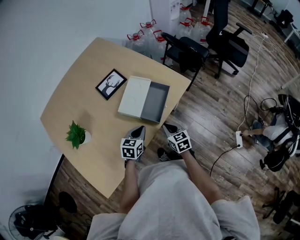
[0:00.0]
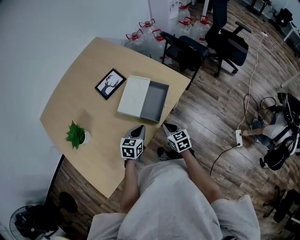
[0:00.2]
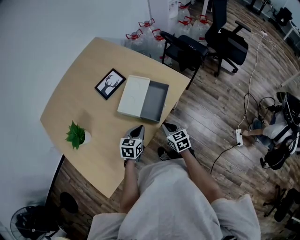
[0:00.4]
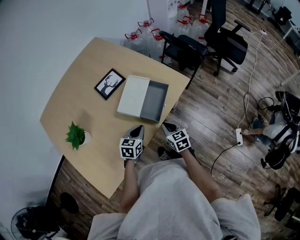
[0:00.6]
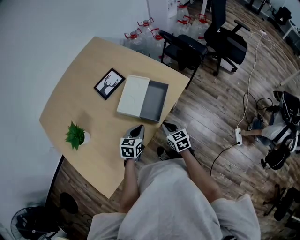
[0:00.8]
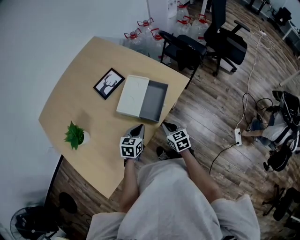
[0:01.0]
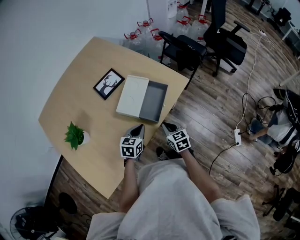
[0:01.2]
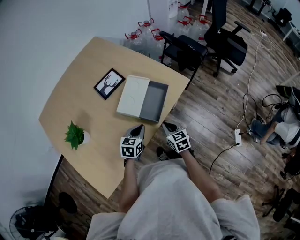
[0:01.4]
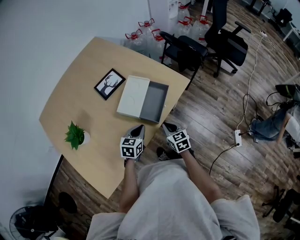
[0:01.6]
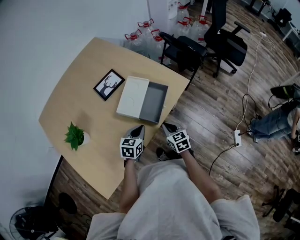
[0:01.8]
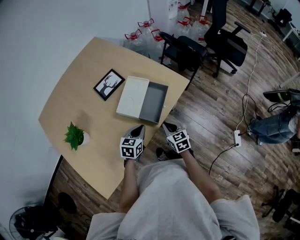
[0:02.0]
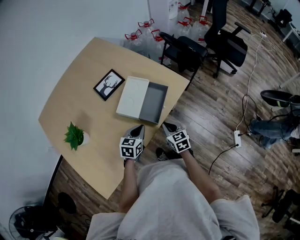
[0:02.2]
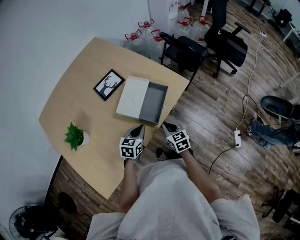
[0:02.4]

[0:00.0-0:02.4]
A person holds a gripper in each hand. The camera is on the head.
0:00.0 to 0:02.4: Neither gripper changes place.

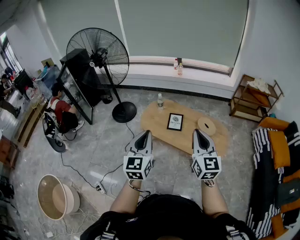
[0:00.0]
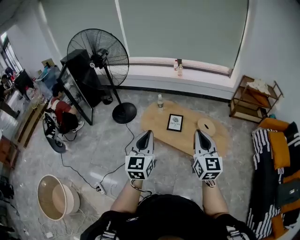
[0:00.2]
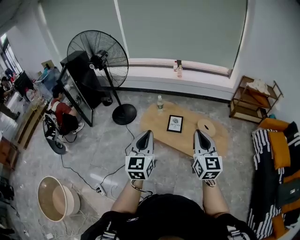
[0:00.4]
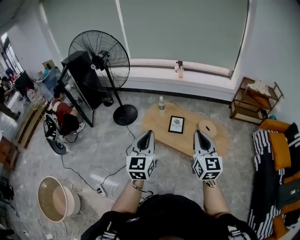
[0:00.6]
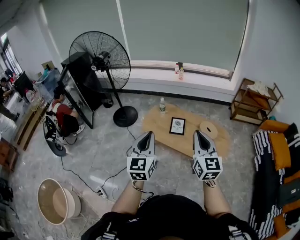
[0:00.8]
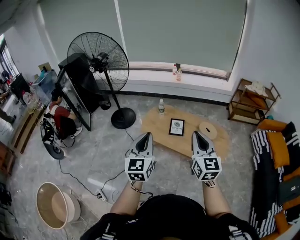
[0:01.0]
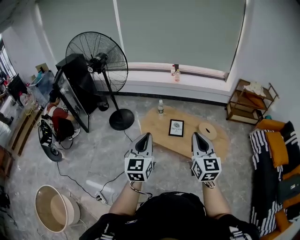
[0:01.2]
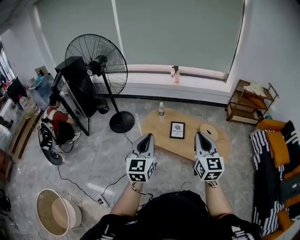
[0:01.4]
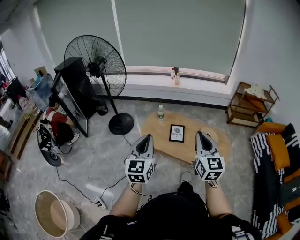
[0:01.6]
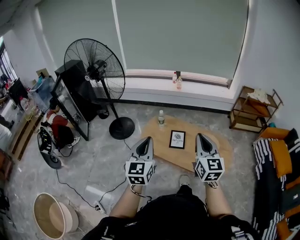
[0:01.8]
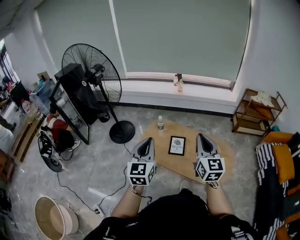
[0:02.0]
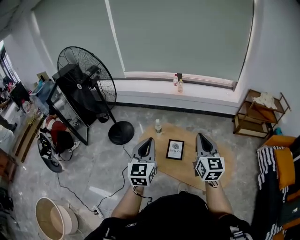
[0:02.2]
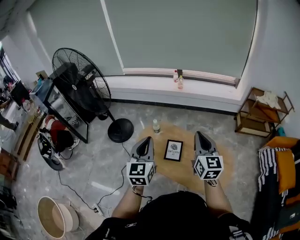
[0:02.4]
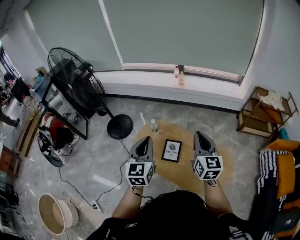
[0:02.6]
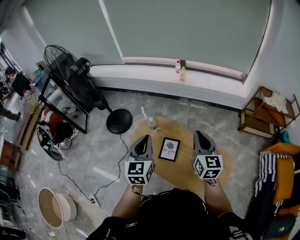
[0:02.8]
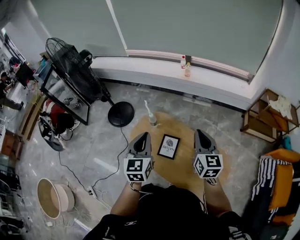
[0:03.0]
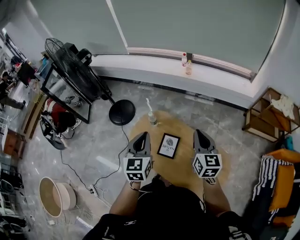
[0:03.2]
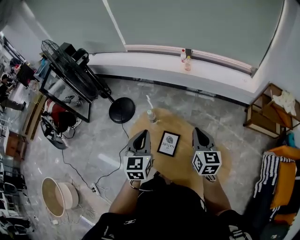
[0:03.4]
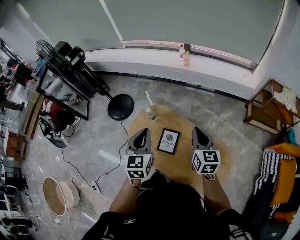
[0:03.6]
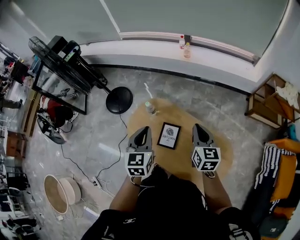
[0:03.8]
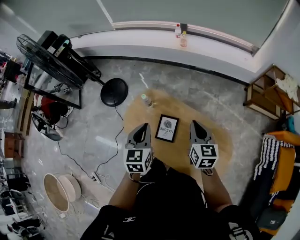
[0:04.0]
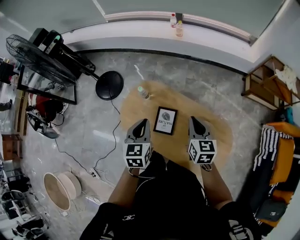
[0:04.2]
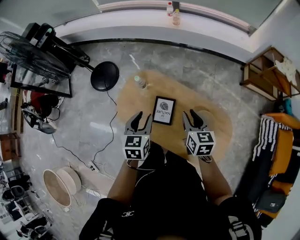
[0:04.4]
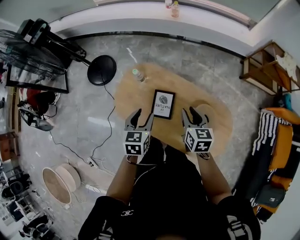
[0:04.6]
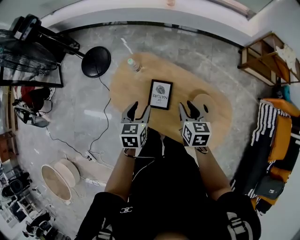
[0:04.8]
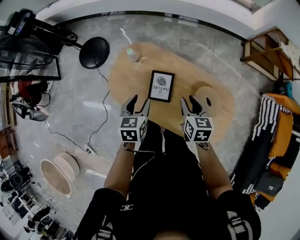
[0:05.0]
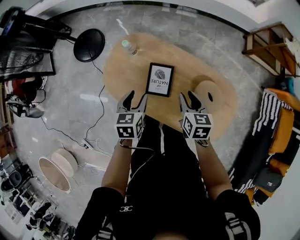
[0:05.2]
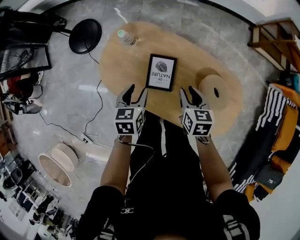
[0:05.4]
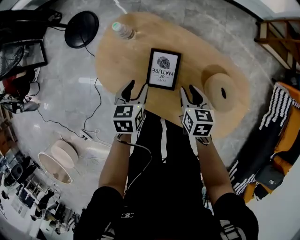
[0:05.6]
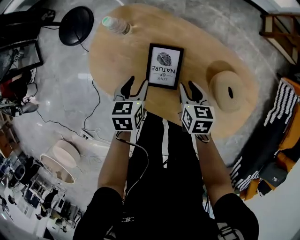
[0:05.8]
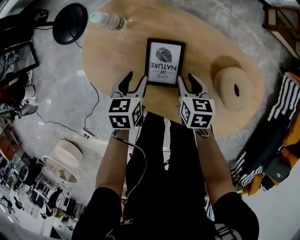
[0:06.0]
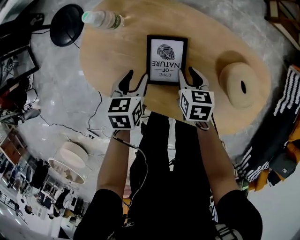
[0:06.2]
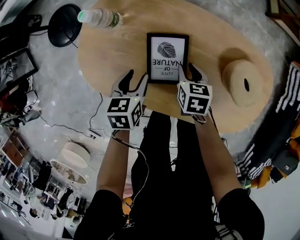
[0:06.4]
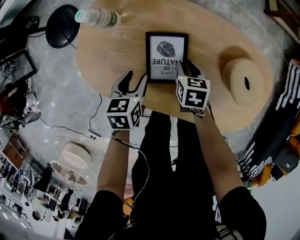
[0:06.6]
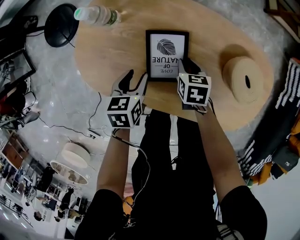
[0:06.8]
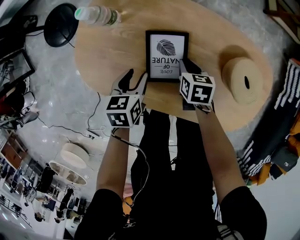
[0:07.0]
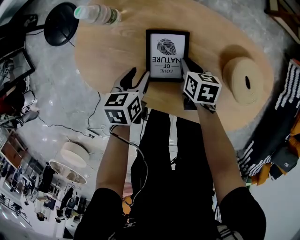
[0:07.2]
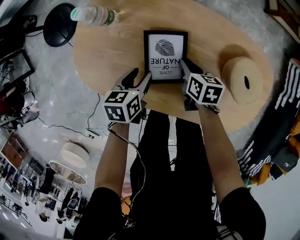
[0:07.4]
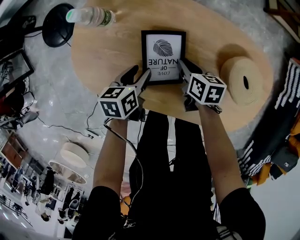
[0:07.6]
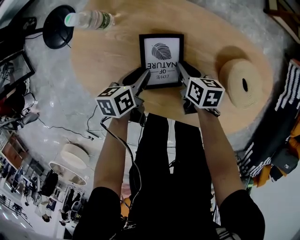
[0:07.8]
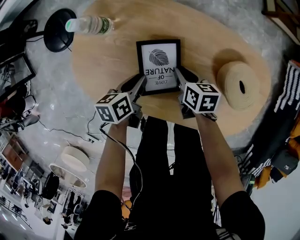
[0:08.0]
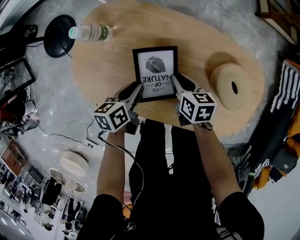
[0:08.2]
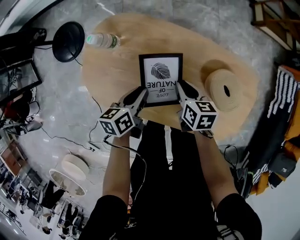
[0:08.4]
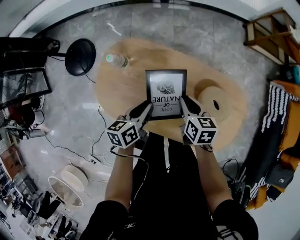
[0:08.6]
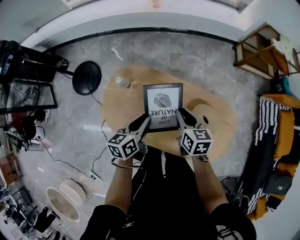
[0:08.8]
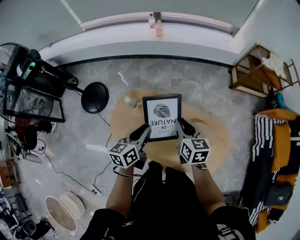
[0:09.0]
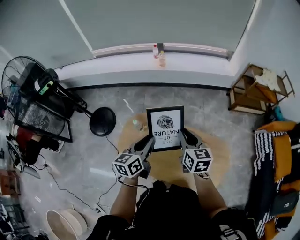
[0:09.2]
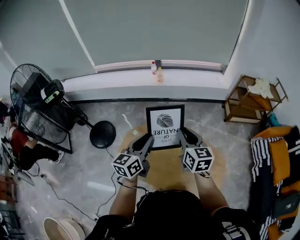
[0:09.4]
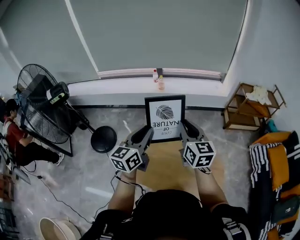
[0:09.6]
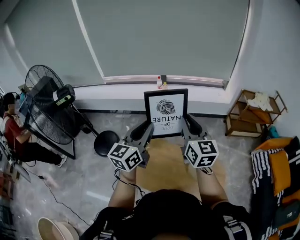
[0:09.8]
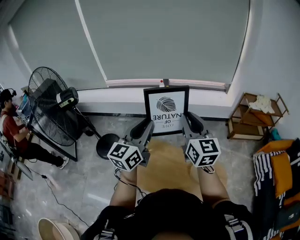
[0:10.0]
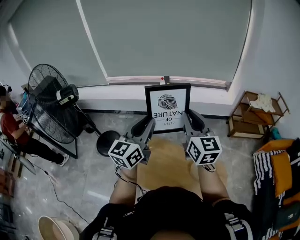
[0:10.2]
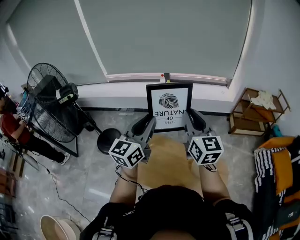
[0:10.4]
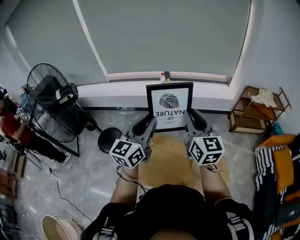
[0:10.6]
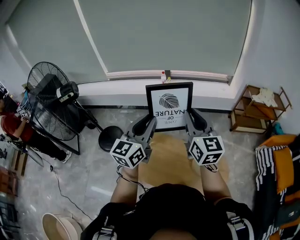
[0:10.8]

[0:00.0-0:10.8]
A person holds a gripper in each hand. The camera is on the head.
0:00.0 to 0:01.6: The two grippers go some 10 cm to the left and forward.
0:01.6 to 0:03.0: The two grippers travel together, forward and to the right, approximately 50 cm.
0:03.0 to 0:04.6: Both grippers travel together downward, approximately 25 cm. The right gripper changes its angle by approximately 30 degrees, and opens up; the left gripper changes its angle by some 30 degrees, and opens up.
0:04.6 to 0:06.2: Both grippers move downward, roughly 40 cm. The right gripper rotates approximately 20 degrees.
0:06.2 to 0:07.8: Both grippers move downward, roughly 5 cm. The left gripper changes its angle by about 30 degrees. Meanwhile the right gripper changes its angle by about 20 degrees.
0:07.8 to 0:09.2: The two grippers go some 60 cm upward. The left gripper rotates approximately 40 degrees, while the right gripper turns by roughly 40 degrees.
0:09.2 to 0:10.8: The grippers both shift upward by some 25 cm. The right gripper changes its angle by approximately 30 degrees. The left gripper changes its angle by about 30 degrees.

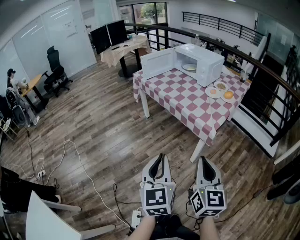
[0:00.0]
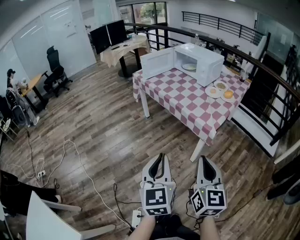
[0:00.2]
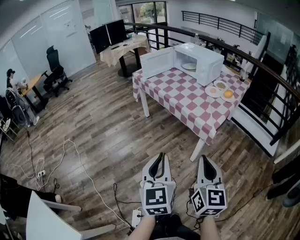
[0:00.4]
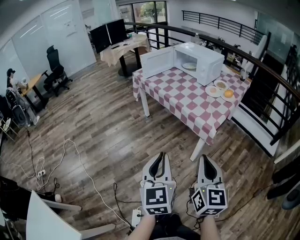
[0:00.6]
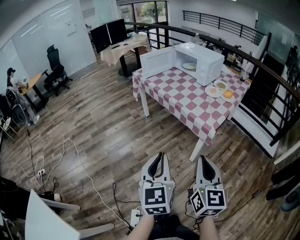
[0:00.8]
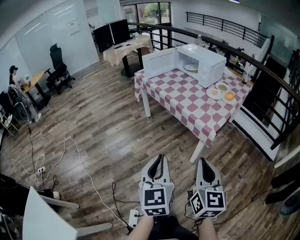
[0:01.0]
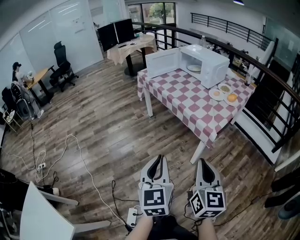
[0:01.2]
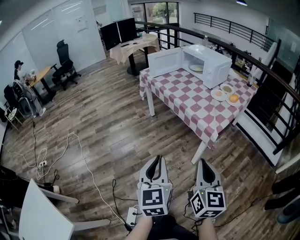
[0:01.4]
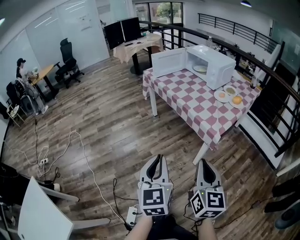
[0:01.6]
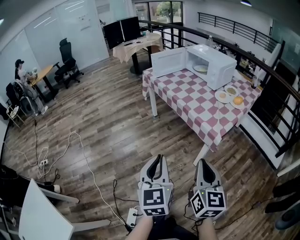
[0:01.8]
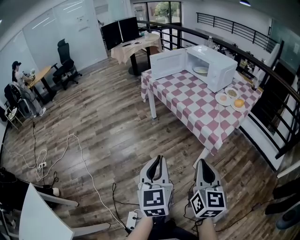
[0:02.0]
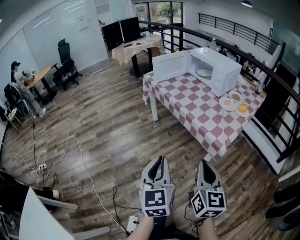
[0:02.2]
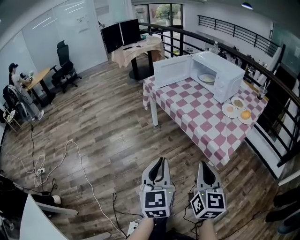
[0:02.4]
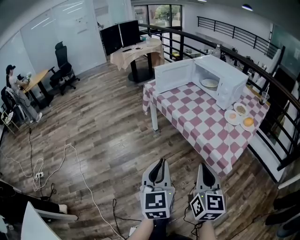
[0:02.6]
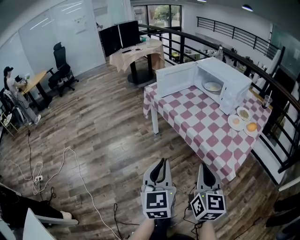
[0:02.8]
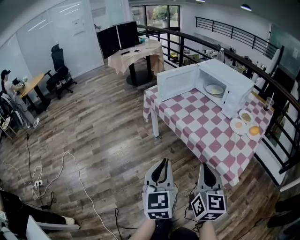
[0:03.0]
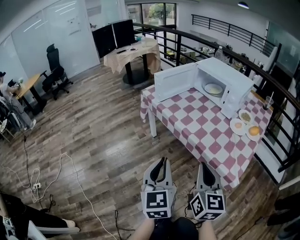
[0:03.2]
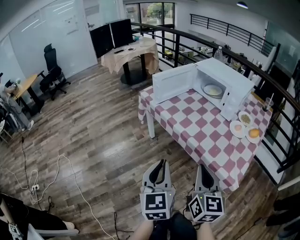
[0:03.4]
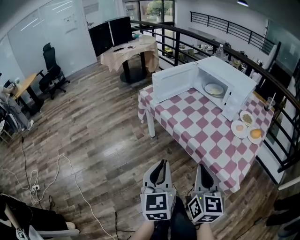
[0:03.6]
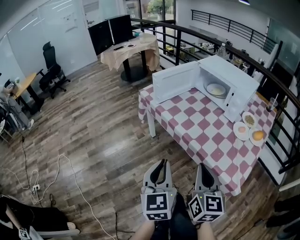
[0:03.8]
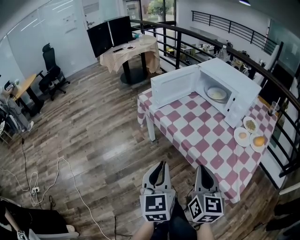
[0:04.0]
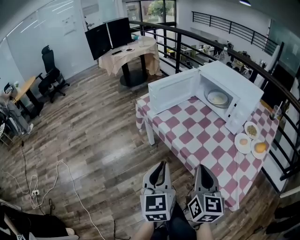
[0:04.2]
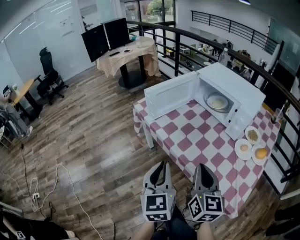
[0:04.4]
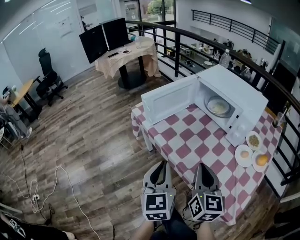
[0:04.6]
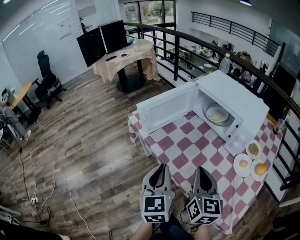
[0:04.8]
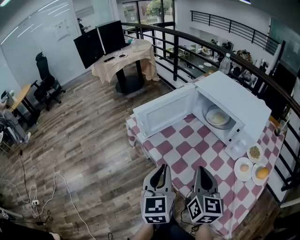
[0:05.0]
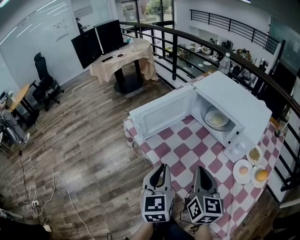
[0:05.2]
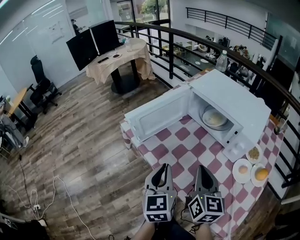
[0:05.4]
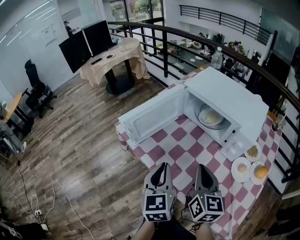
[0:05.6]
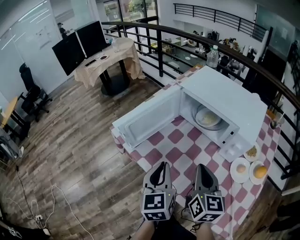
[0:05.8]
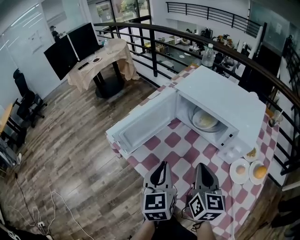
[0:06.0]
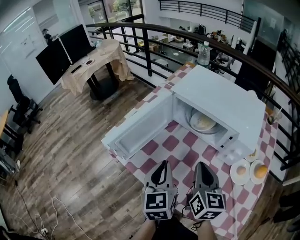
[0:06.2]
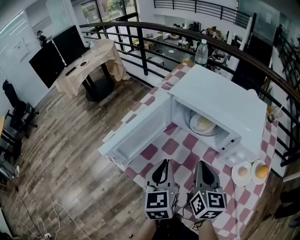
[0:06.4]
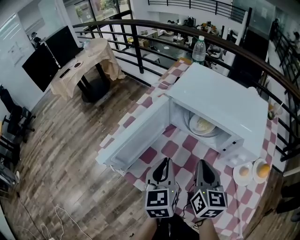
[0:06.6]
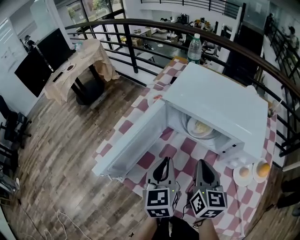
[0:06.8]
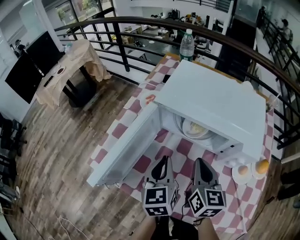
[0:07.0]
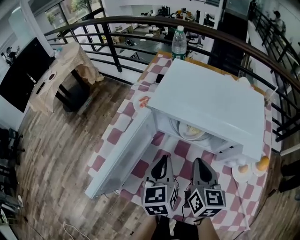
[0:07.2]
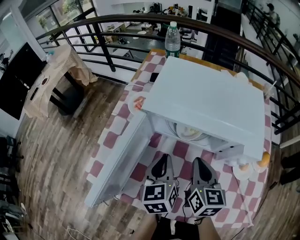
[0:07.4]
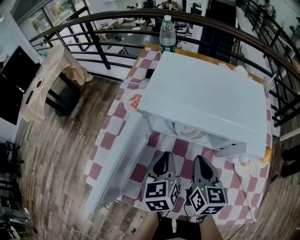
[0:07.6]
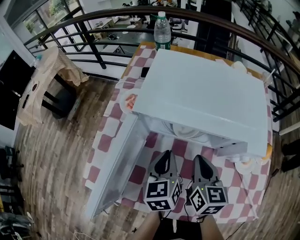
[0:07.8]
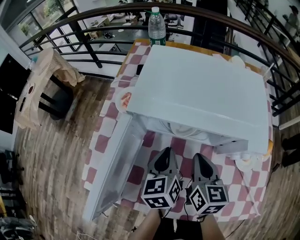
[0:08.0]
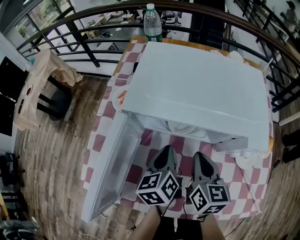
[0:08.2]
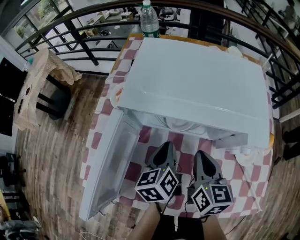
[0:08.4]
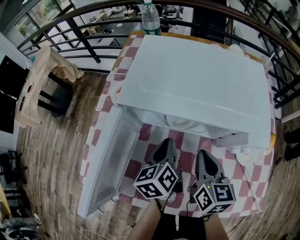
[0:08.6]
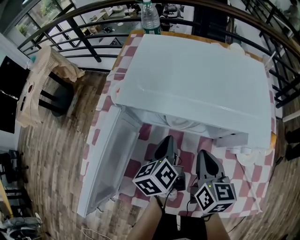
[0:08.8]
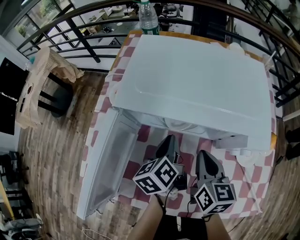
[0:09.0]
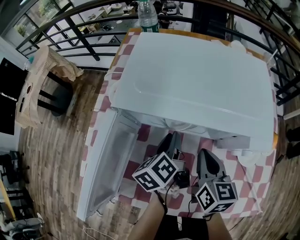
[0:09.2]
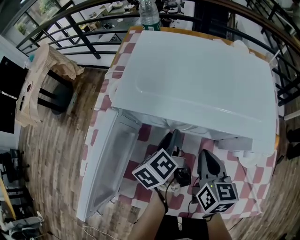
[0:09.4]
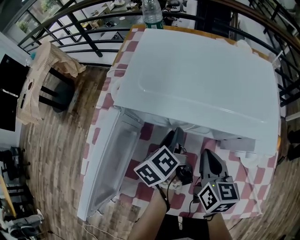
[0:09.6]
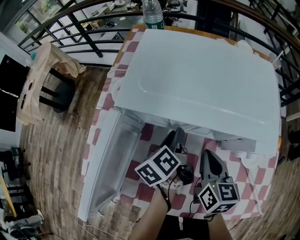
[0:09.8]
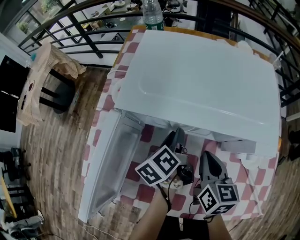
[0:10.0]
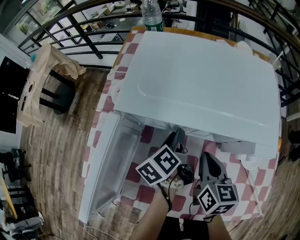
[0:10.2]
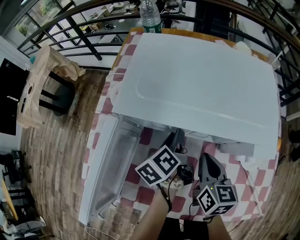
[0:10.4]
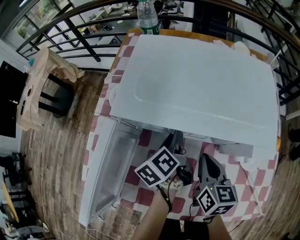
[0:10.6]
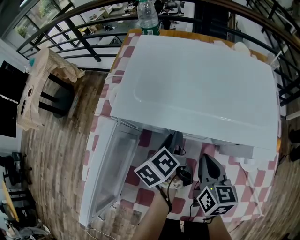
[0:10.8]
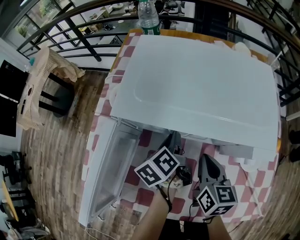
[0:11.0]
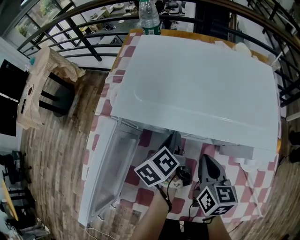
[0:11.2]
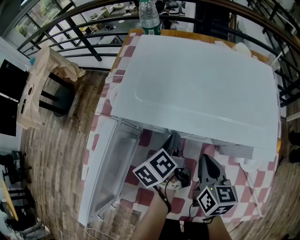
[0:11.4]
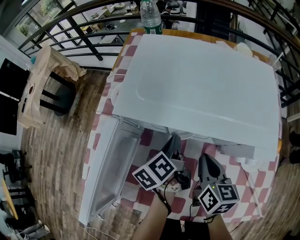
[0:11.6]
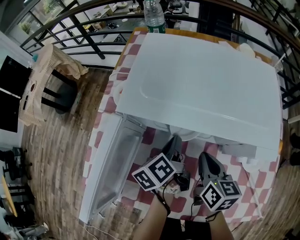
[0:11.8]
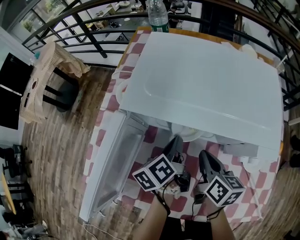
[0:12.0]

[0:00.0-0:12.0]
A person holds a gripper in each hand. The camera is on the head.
0:00.0 to 0:01.6: There are only small adjustments of the grippers.
0:01.6 to 0:03.0: The two grippers go approximately 30 cm forward.
0:03.0 to 0:04.4: Both grippers move forward, some 20 cm.
0:04.4 to 0:06.0: The two grippers go about 25 cm forward.
0:06.0 to 0:07.6: The left gripper heads forward, covering about 20 cm, and swivels roughly 30 degrees. Meanwhile the right gripper shifts roughly 15 cm forward and downward, and turns by some 20 degrees.
0:07.6 to 0:09.0: The left gripper ends up roughly 5 cm from where it was, and rotates about 30 degrees.
0:09.0 to 0:10.4: The left gripper opens its fingers.
0:10.4 to 0:12.0: The left gripper closes up.
